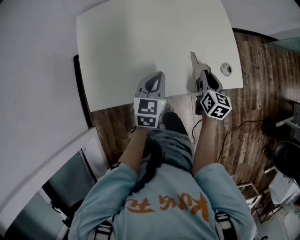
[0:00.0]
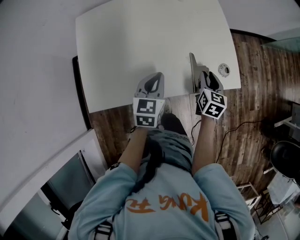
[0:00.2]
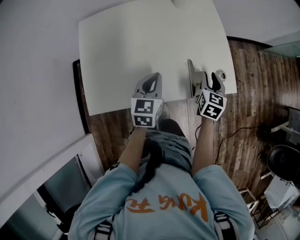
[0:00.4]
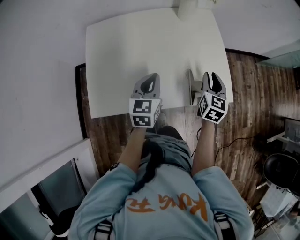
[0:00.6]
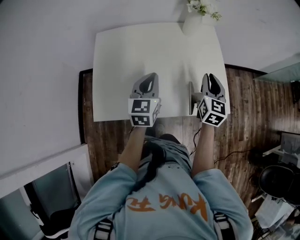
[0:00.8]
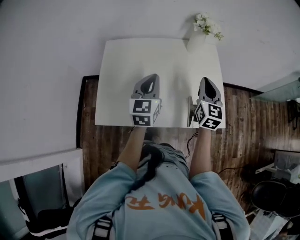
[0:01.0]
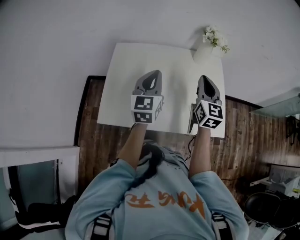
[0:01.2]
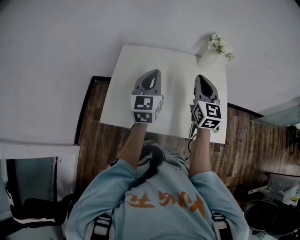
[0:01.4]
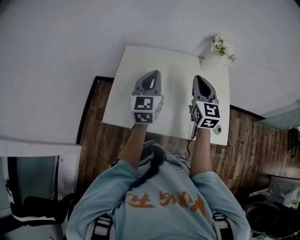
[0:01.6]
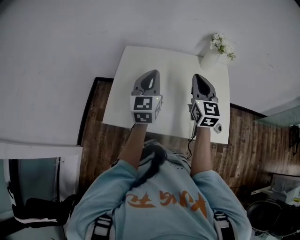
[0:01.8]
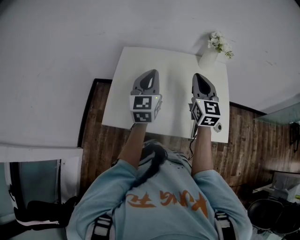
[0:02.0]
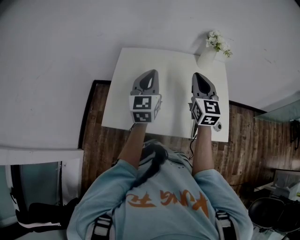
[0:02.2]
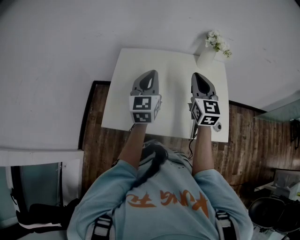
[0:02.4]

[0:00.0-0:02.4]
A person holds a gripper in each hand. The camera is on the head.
0:00.0 to 0:01.2: Both grippers travel together upward and to the left, roughly 25 cm. The right gripper changes its angle by some 40 degrees; the left gripper rotates about 30 degrees.
0:01.2 to 0:02.4: The right gripper is displaced to the left by some 5 cm.

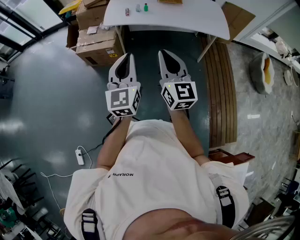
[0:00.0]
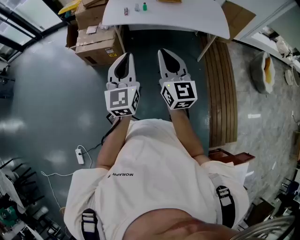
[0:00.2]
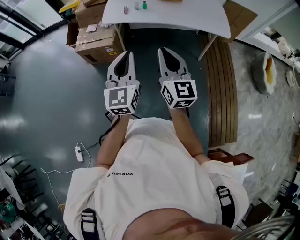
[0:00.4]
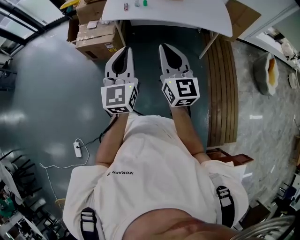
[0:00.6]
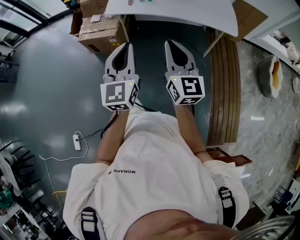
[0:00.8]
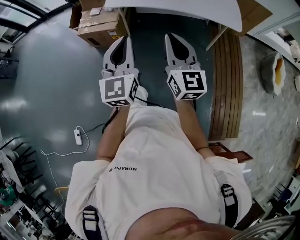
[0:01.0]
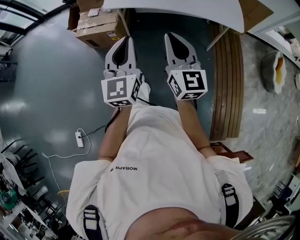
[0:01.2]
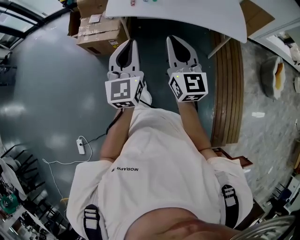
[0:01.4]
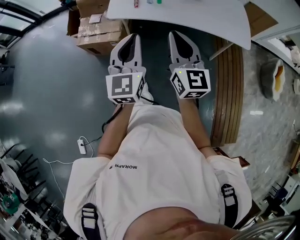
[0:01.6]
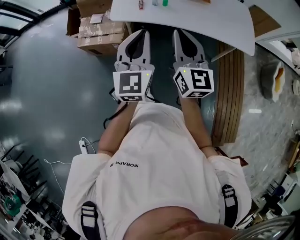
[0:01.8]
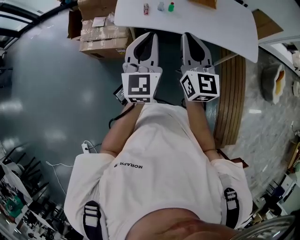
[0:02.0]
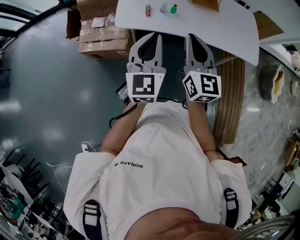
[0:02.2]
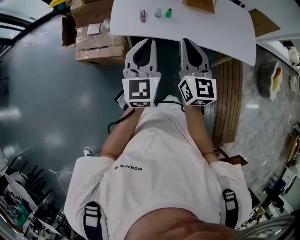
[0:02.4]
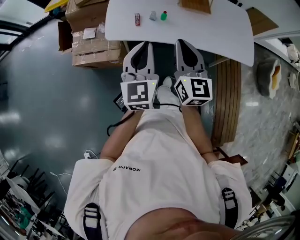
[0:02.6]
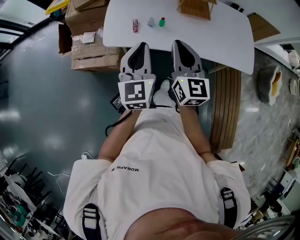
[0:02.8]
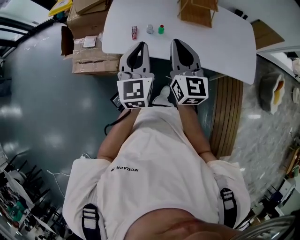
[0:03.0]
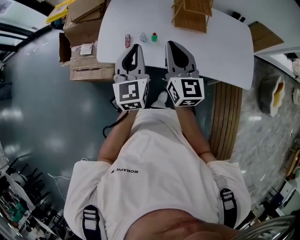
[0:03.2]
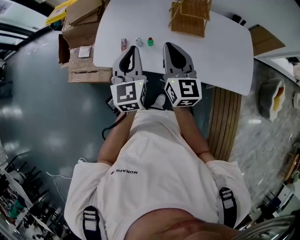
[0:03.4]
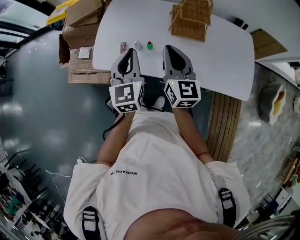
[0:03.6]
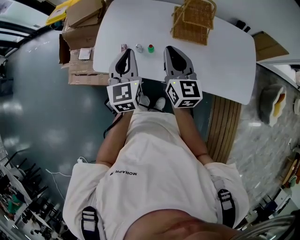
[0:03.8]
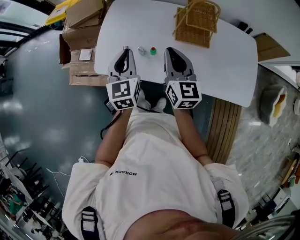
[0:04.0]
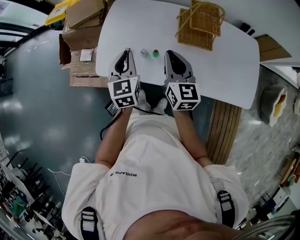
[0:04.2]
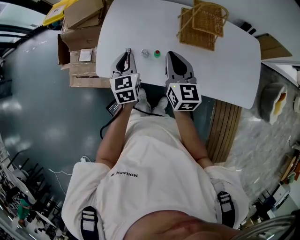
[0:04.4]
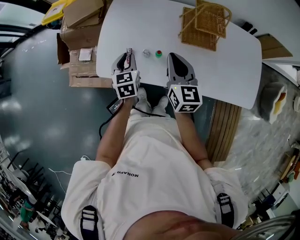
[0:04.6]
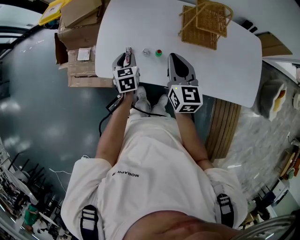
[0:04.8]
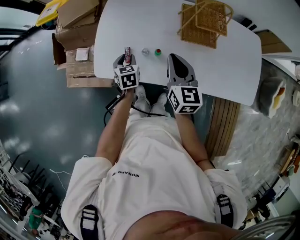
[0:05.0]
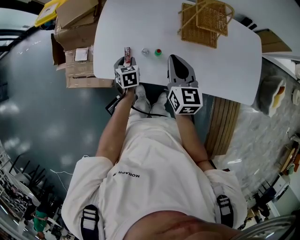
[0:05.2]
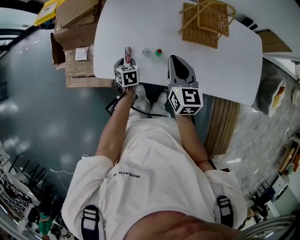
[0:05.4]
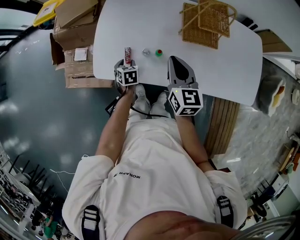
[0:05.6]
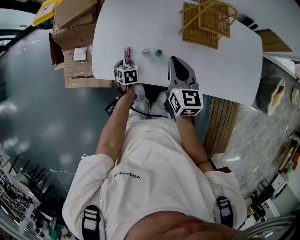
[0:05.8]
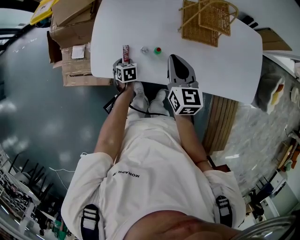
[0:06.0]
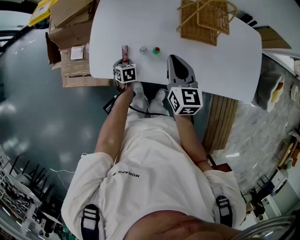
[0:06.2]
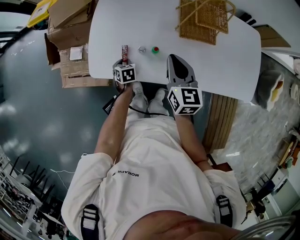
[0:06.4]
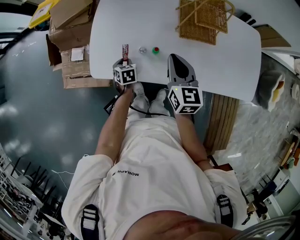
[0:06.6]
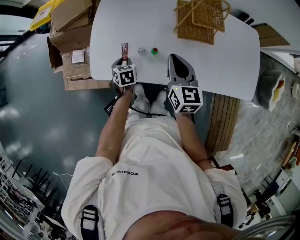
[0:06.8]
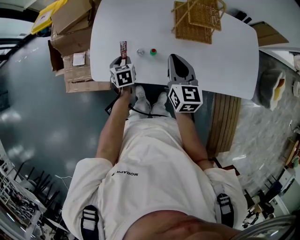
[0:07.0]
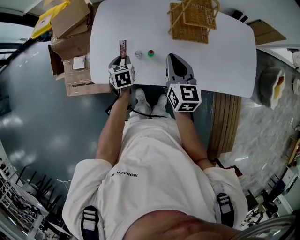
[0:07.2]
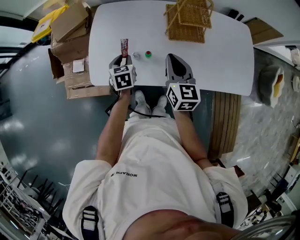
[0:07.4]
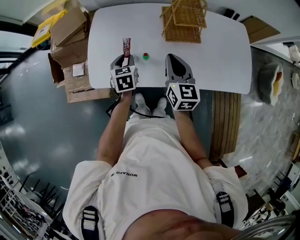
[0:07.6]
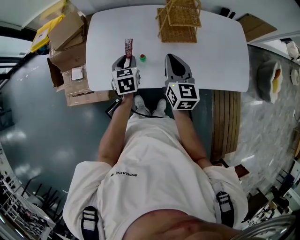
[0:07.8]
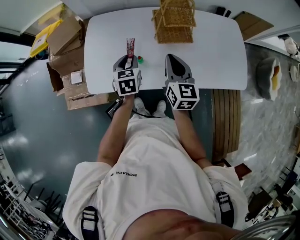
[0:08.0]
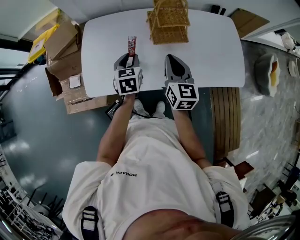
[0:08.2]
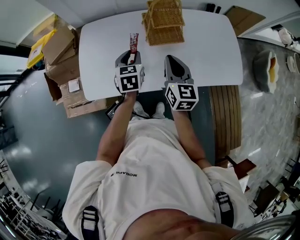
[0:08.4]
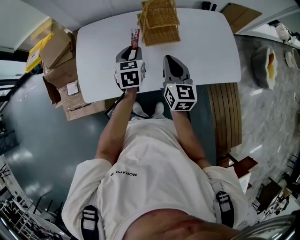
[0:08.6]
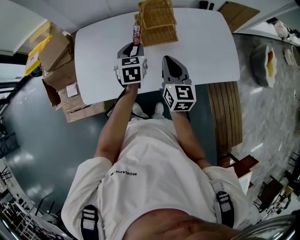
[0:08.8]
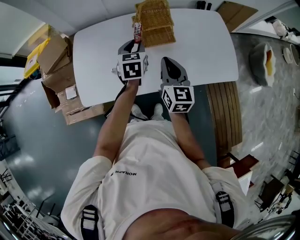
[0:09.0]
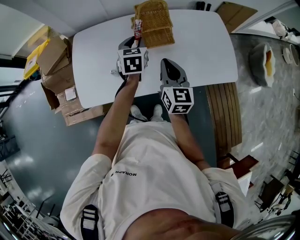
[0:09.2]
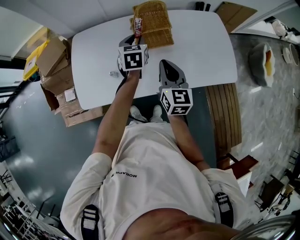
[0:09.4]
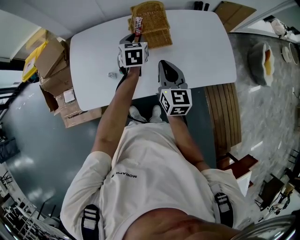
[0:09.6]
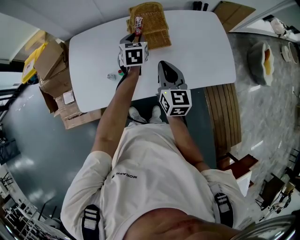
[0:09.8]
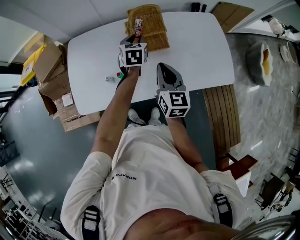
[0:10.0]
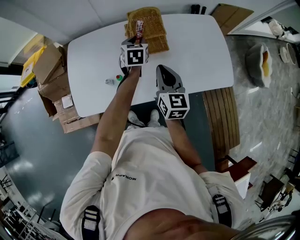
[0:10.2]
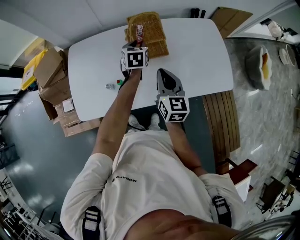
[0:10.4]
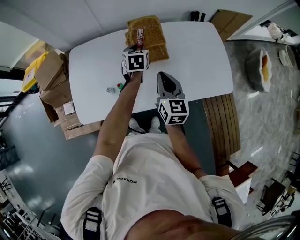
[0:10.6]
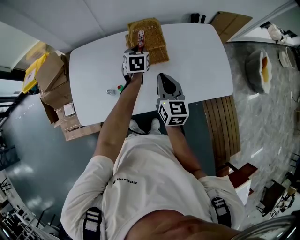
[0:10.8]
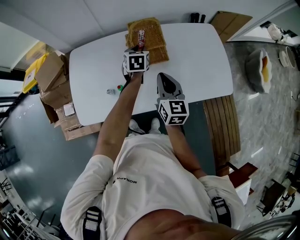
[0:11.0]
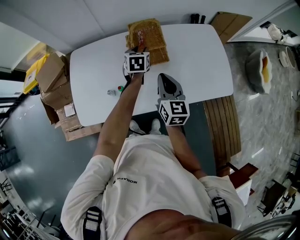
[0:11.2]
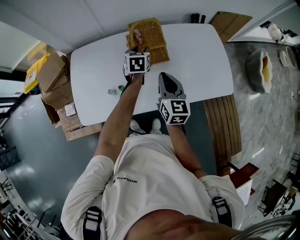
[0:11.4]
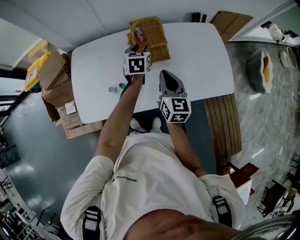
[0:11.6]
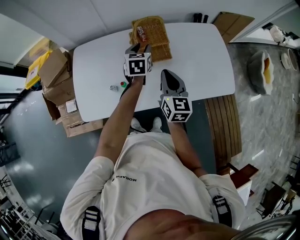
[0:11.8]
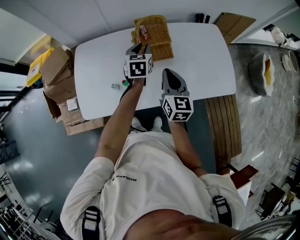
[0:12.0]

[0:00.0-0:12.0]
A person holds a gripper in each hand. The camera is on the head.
0:00.0 to 0:01.6: Both grippers move forward, some 20 cm.
0:01.6 to 0:03.0: The two grippers go roughly 30 cm forward.
0:03.0 to 0:04.4: The grippers both shift forward and downward by approximately 20 cm. The left gripper changes its angle by approximately 20 degrees.
0:04.4 to 0:06.0: The right gripper heads downward, covering about 5 cm, while the left gripper travels downward by some 25 cm, tilts its fingers roughly 30 degrees downward, and opens its fingers.
0:06.0 to 0:07.6: The right gripper is displaced to the right by approximately 5 cm. Meanwhile the left gripper travels upward and to the right by approximately 20 cm, and rotates some 20 degrees.
0:07.6 to 0:09.0: The left gripper shifts about 20 cm to the right and upward, while the right gripper travels to the right by approximately 10 cm.
0:09.0 to 0:10.4: The left gripper travels forward and to the right by approximately 10 cm.
0:10.4 to 0:12.0: The left gripper changes place by some 5 cm.

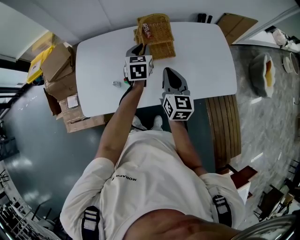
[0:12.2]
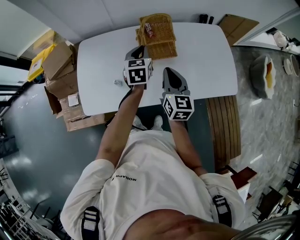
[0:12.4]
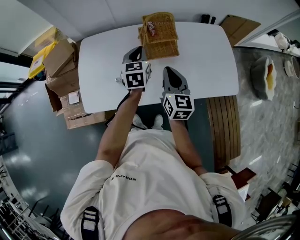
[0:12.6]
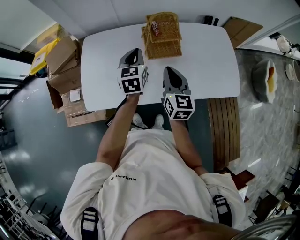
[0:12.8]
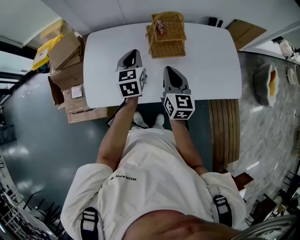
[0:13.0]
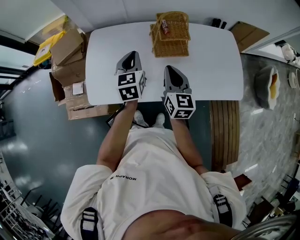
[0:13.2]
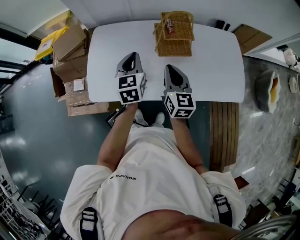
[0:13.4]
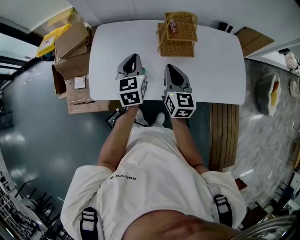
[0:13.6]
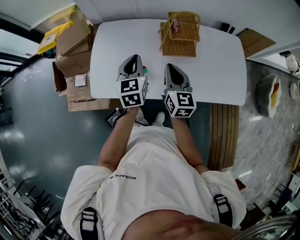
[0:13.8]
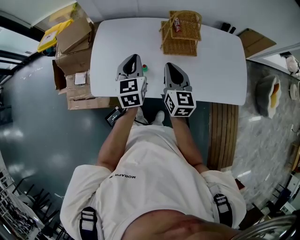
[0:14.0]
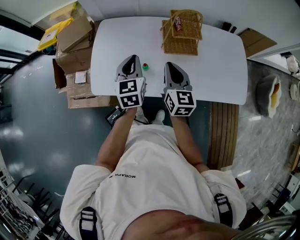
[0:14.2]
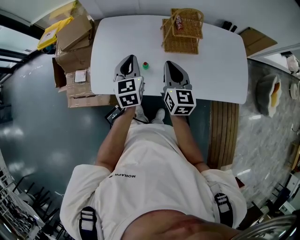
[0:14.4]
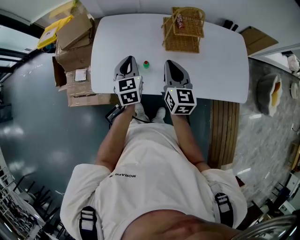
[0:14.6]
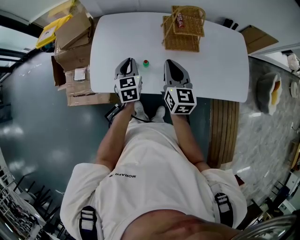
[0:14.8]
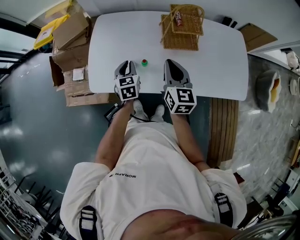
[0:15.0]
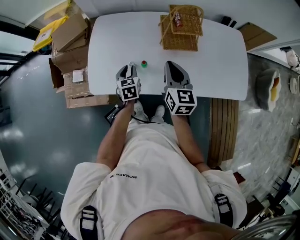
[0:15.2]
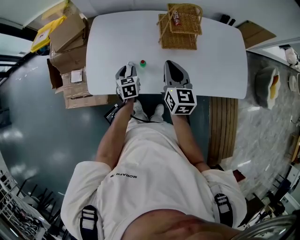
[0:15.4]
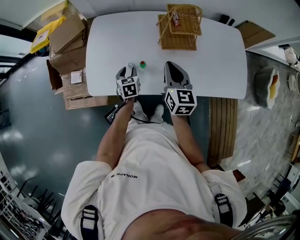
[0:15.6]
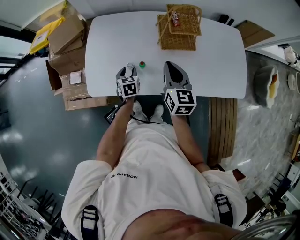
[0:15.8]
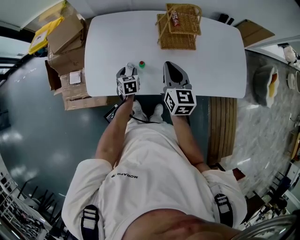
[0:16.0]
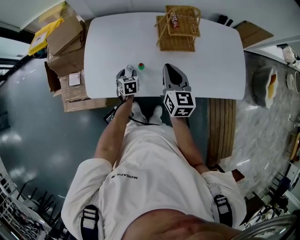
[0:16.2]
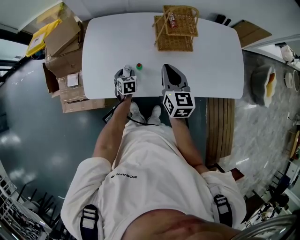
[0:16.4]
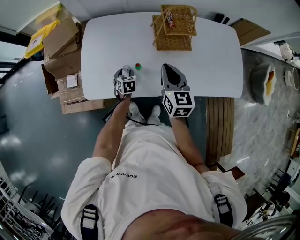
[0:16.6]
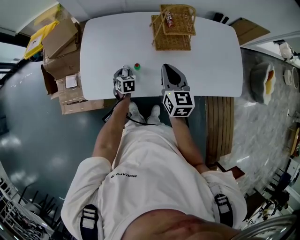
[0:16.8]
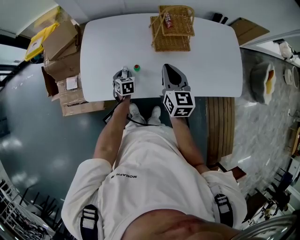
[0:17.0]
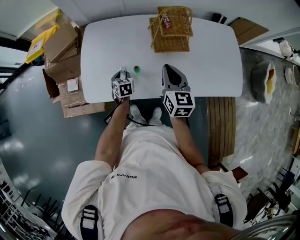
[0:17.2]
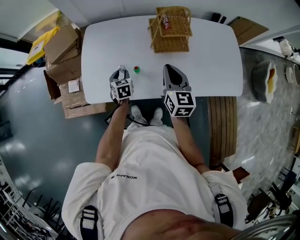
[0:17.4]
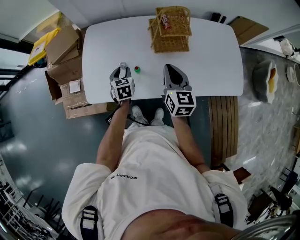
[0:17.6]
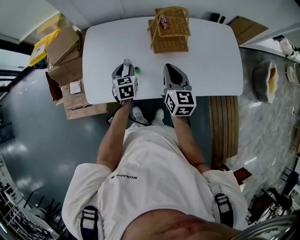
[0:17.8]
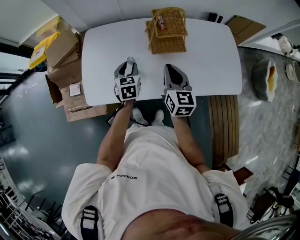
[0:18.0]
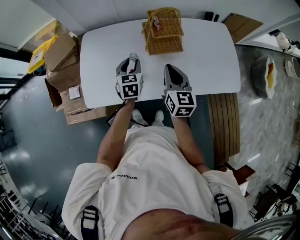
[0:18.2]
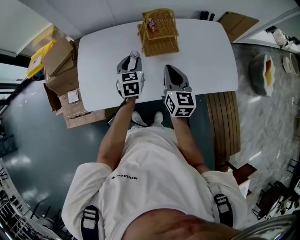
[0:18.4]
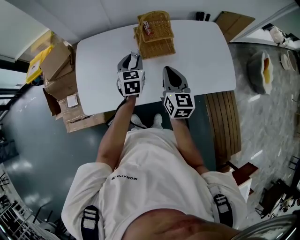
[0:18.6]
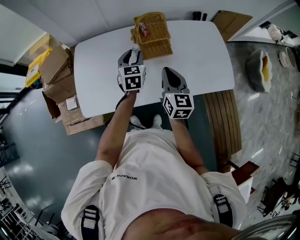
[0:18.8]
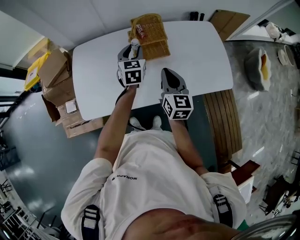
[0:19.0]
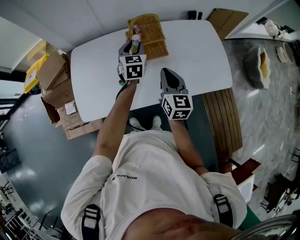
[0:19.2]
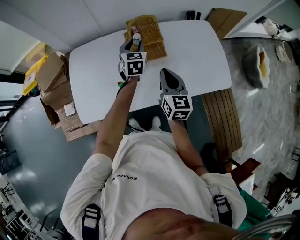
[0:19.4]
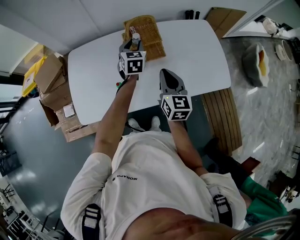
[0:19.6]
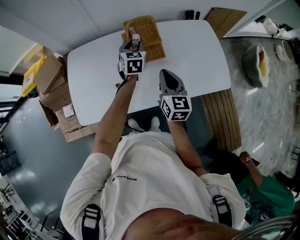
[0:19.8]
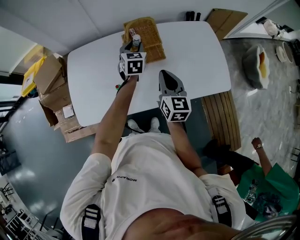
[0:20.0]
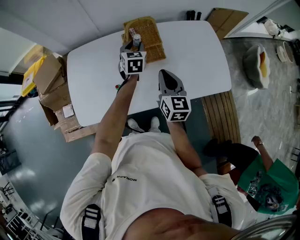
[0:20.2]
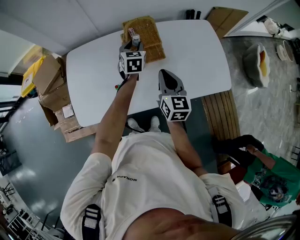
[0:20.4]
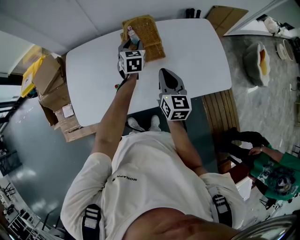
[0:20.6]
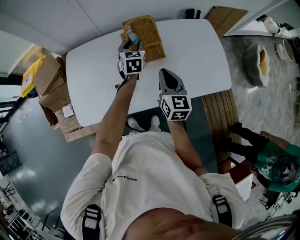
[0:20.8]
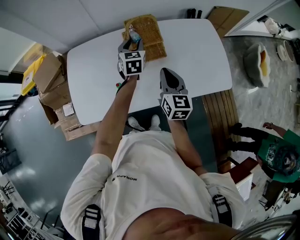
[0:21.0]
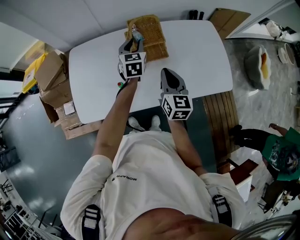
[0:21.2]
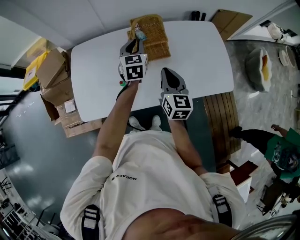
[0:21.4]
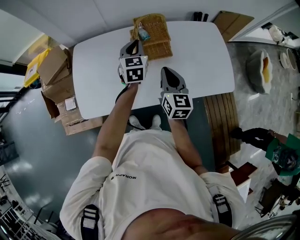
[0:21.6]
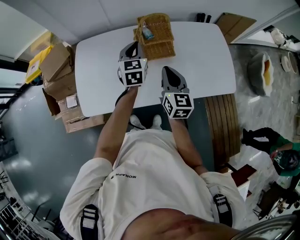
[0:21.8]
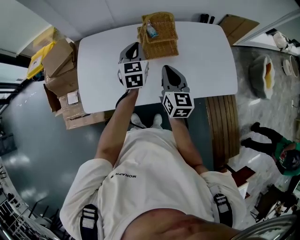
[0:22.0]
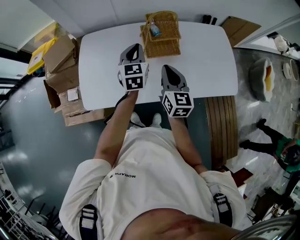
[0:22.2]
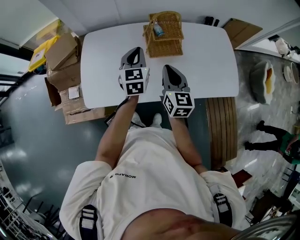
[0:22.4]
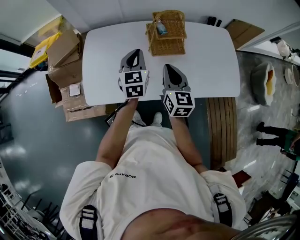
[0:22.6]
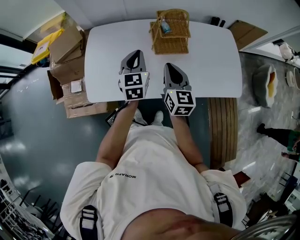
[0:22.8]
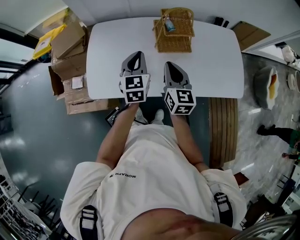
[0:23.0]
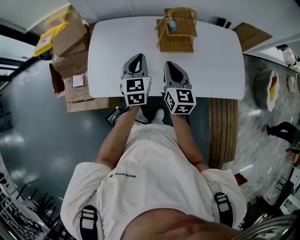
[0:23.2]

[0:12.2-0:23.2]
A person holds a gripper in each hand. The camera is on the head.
0:12.2 to 0:13.8: The left gripper is displaced to the left and backward by approximately 20 cm. The right gripper is displaced to the left by approximately 10 cm.
0:13.8 to 0:15.4: The left gripper is displaced downward by approximately 20 cm, changes its angle by approximately 20 degrees, and opens.
0:15.4 to 0:17.0: The left gripper goes approximately 10 cm downward.
0:17.0 to 0:18.4: The left gripper travels upward and to the right by about 25 cm, and swivels roughly 30 degrees; the right gripper is displaced to the right by roughly 5 cm.
0:18.4 to 0:20.0: The right gripper goes some 5 cm to the right; the left gripper heads forward and to the right, covering about 15 cm.
0:20.0 to 0:21.6: The left gripper goes roughly 5 cm upward, and closes its fingers.
0:21.6 to 0:23.2: The right gripper heads to the left, covering approximately 10 cm. The left gripper moves backward and to the left, approximately 15 cm.
